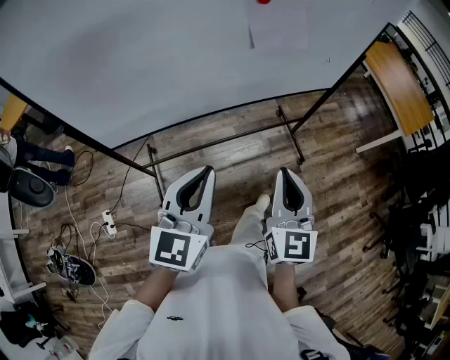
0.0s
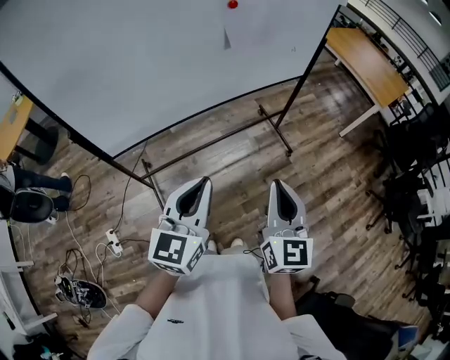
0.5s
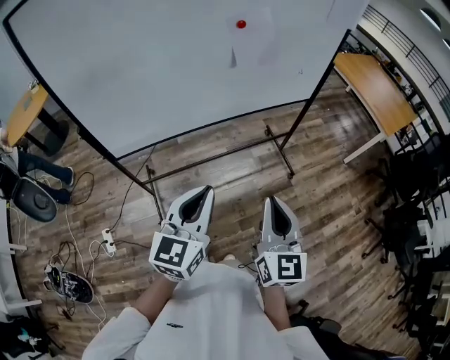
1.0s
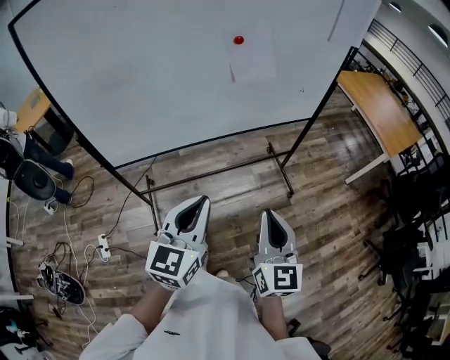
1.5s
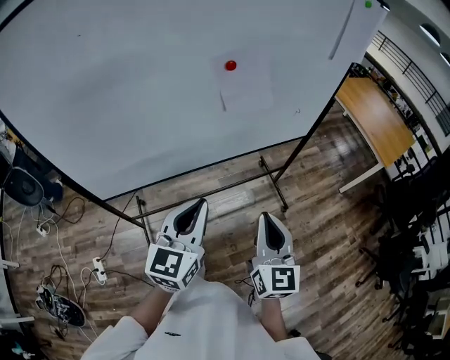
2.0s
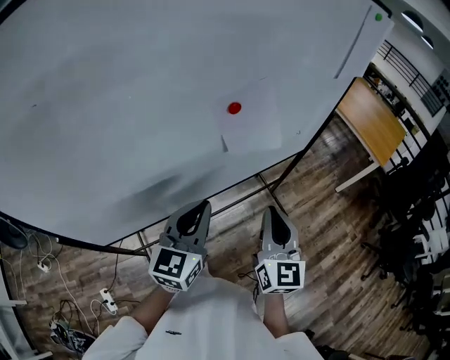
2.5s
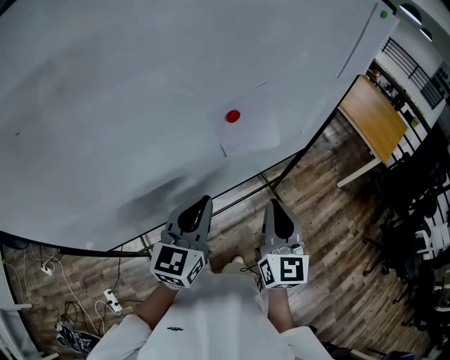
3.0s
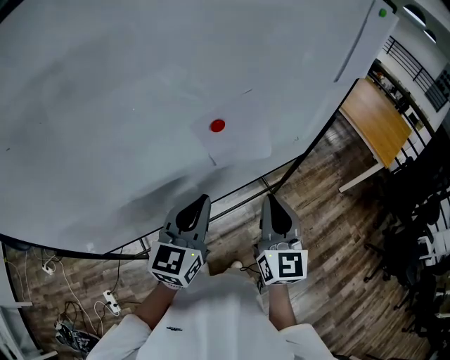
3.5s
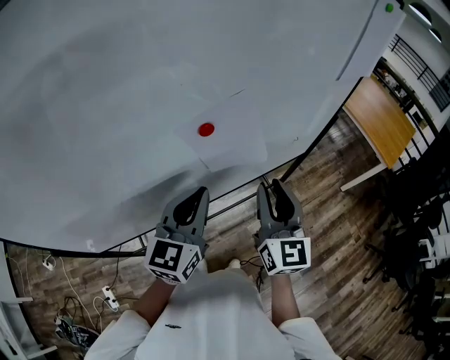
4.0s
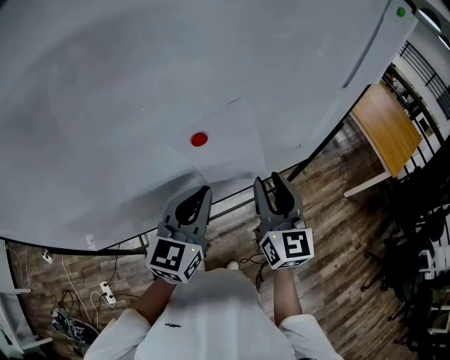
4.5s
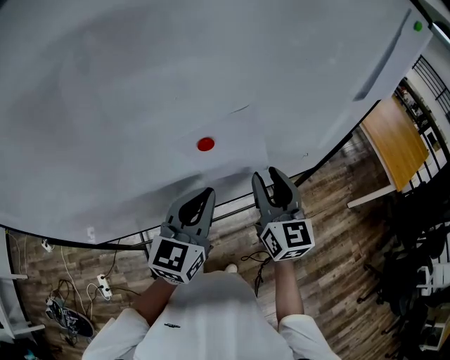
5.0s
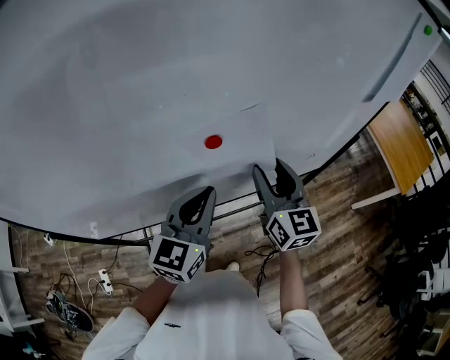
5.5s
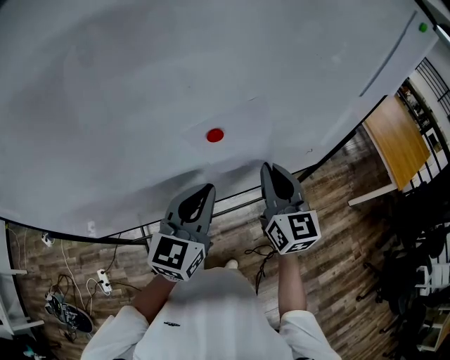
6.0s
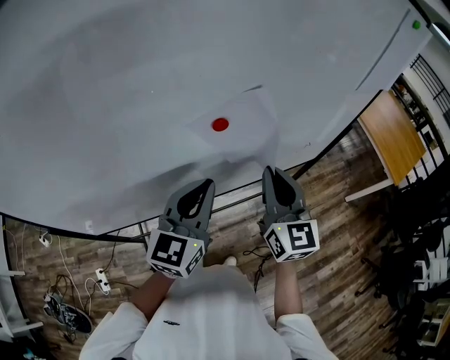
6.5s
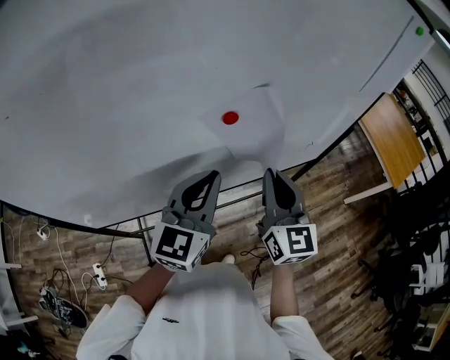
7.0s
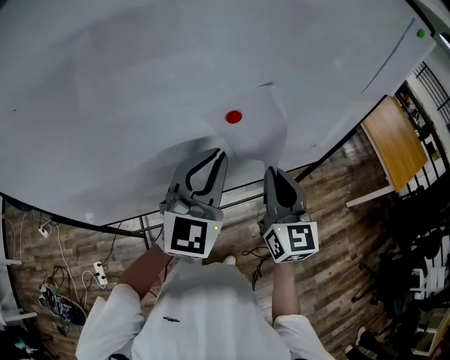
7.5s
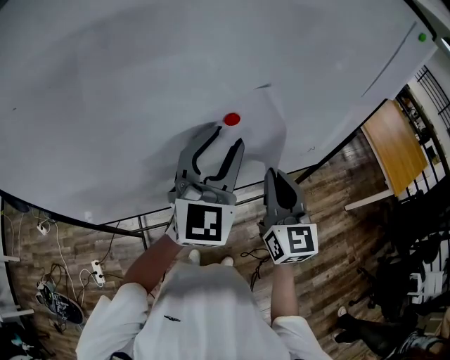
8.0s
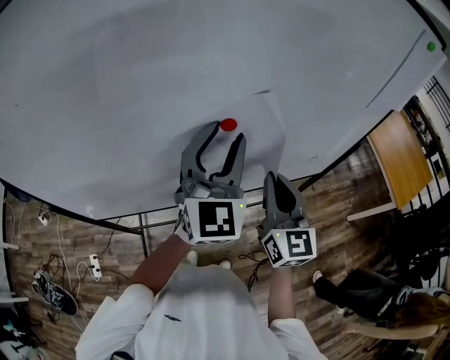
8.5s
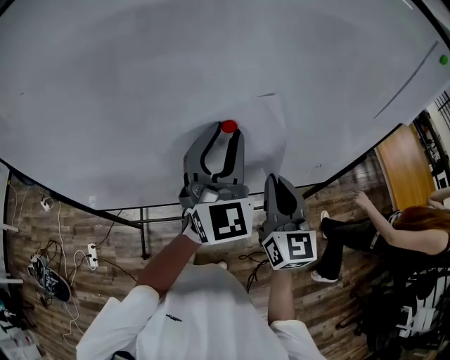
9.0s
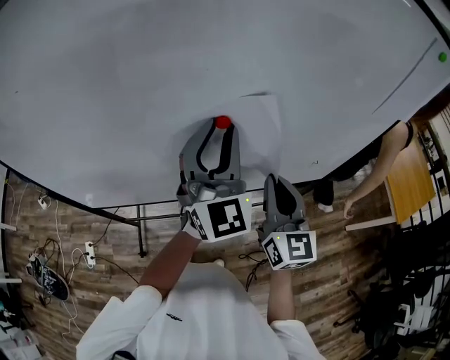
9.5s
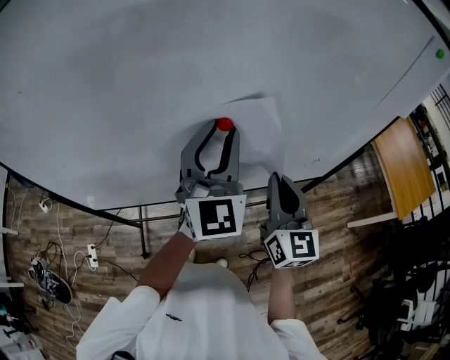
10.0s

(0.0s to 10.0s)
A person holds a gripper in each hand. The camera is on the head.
0.0s - 2.0s: The right gripper goes backward and returns, about 10 cm each way; the left gripper shifts roughly 5 cm forward.
2.0s - 4.0s: The two grippers go some 25 cm forward. The right gripper opens.
4.0s - 6.0s: The right gripper is displaced forward by some 10 cm, and closes.
6.0s - 8.0s: The left gripper moves upward, approximately 10 cm, changes its angle by about 30 degrees, and opens its fingers, while the right gripper is displaced backward by about 5 cm.

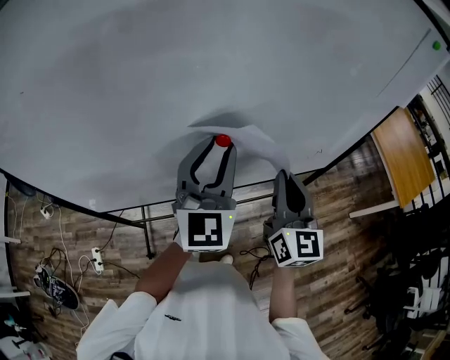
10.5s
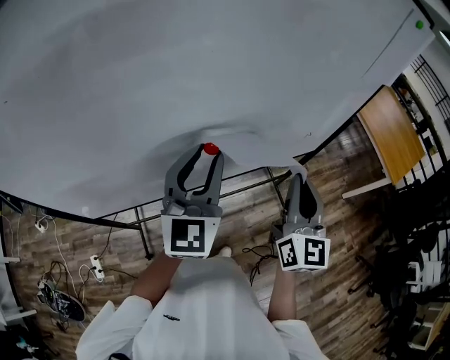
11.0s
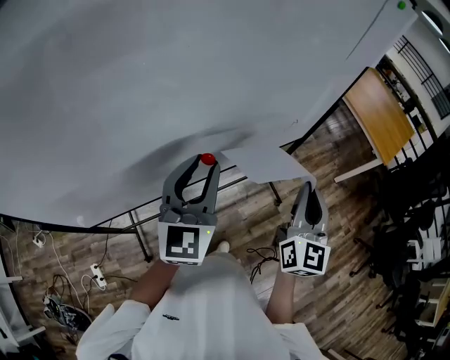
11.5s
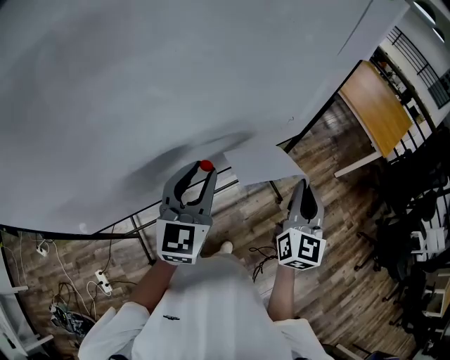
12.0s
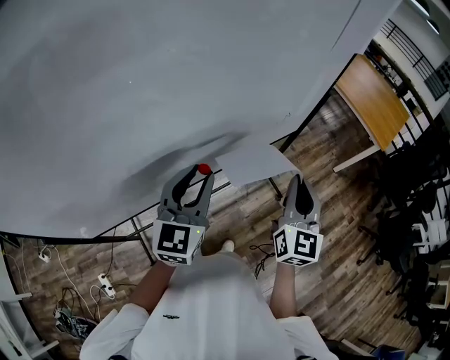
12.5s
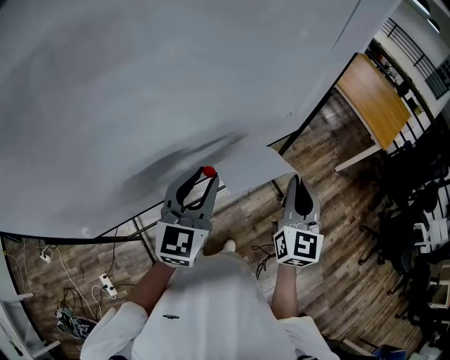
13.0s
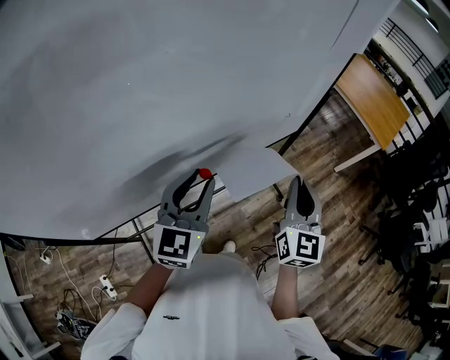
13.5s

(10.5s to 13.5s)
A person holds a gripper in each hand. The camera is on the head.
10.5s - 12.0s: The right gripper is displaced to the right and backward by approximately 15 cm, and swivels about 30 degrees; the left gripper goes about 10 cm downward, and turns by some 20 degrees.
12.0s - 13.5s: The grippers make only small movements.

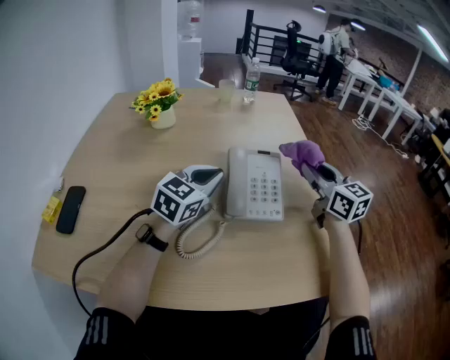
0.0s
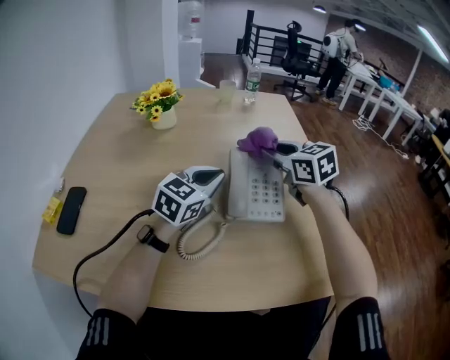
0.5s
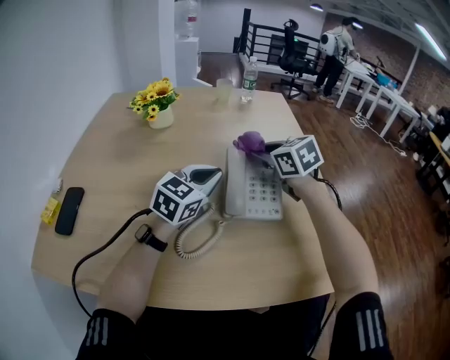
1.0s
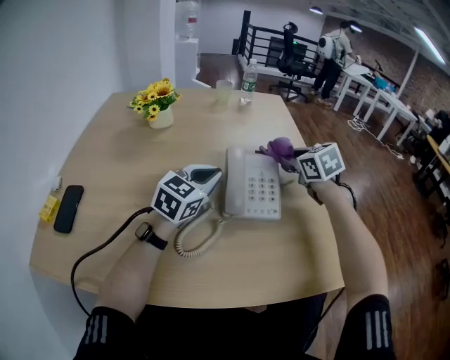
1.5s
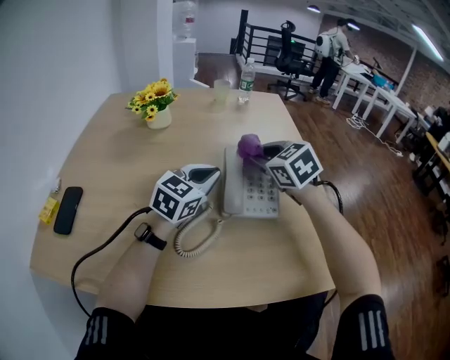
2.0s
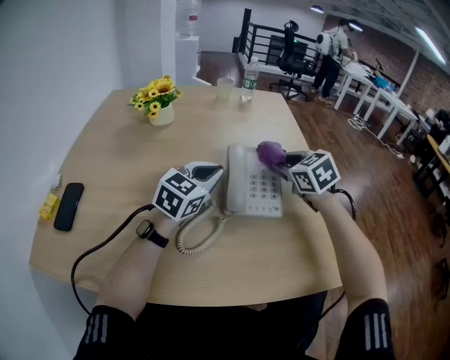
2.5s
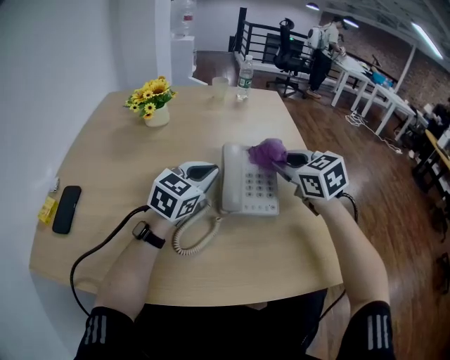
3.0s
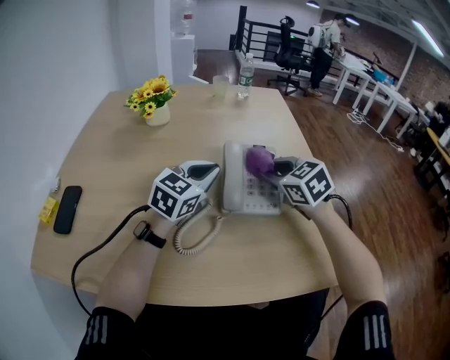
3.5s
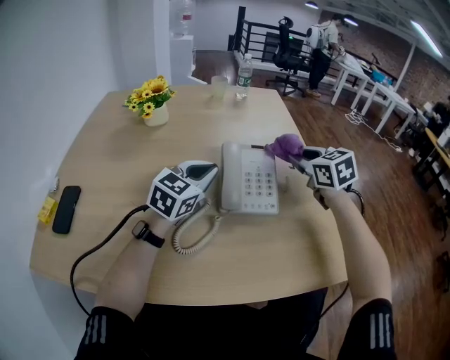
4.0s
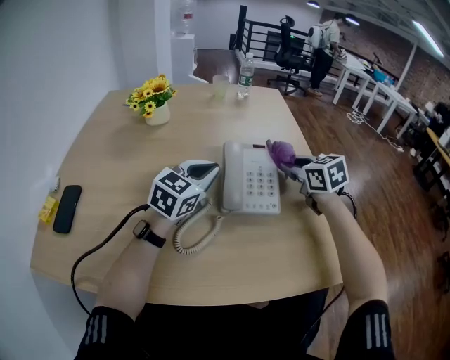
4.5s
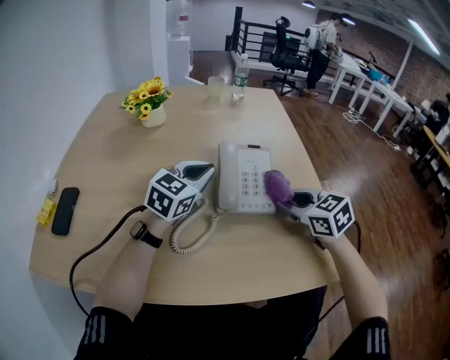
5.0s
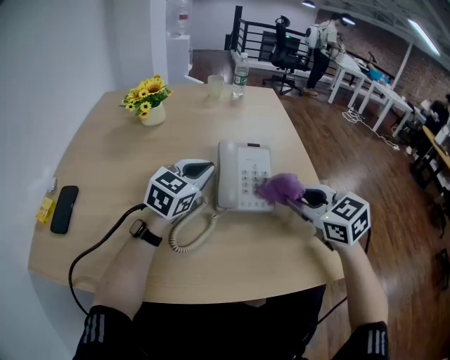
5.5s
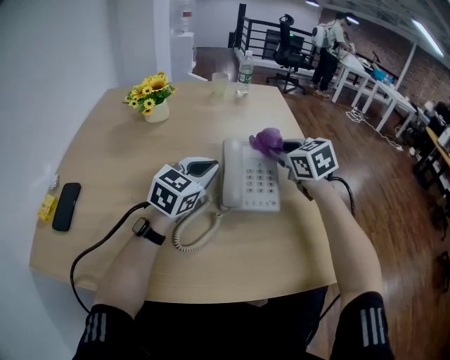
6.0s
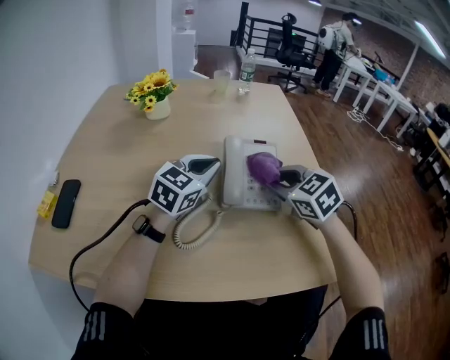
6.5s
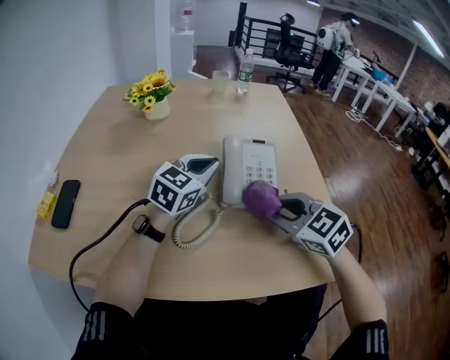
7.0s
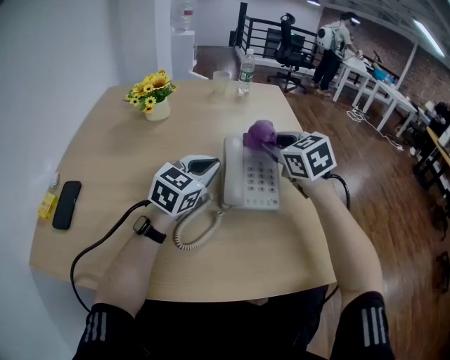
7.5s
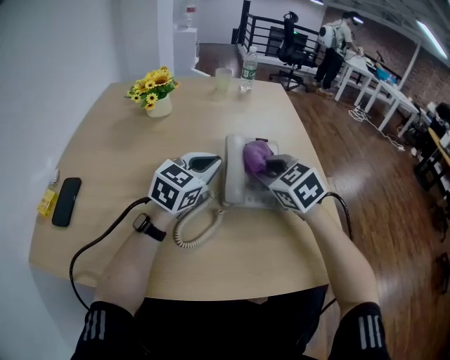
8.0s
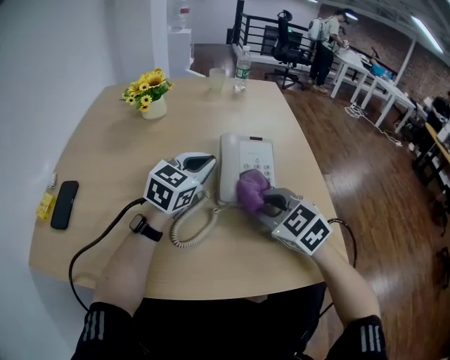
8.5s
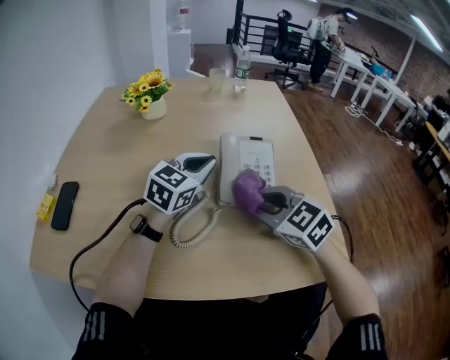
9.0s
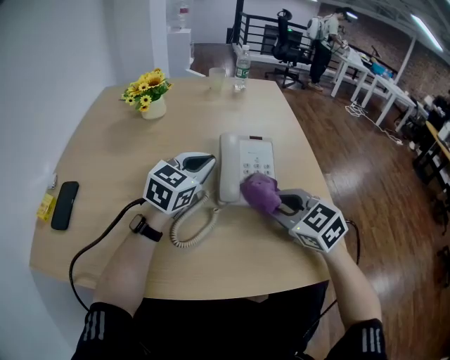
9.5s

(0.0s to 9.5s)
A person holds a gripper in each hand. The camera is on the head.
0.0s - 2.0s: The right gripper moves left and right over roughly 15 cm, changing direction 2 times, and tips its fingers downward by roughly 30 degrees.
2.0s - 4.0s: The right gripper heads to the right, covering about 10 cm.
4.0s - 5.5s: The right gripper moves backward, approximately 15 cm.
5.5s - 7.5s: The right gripper swings forward and backward, some 20 cm each way, with 2 reversals.
7.5s - 9.5s: The right gripper heads backward and downward, covering approximately 15 cm.

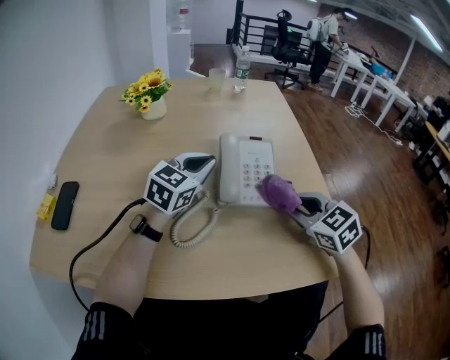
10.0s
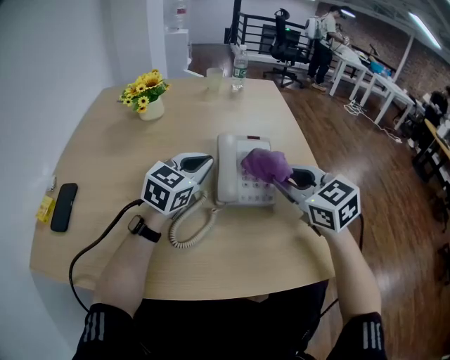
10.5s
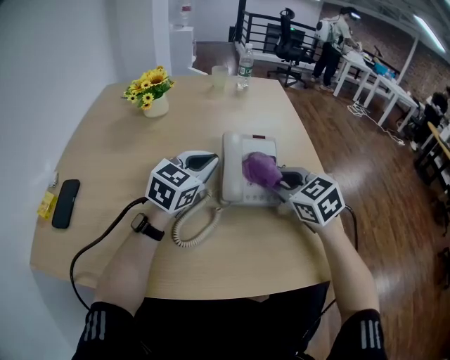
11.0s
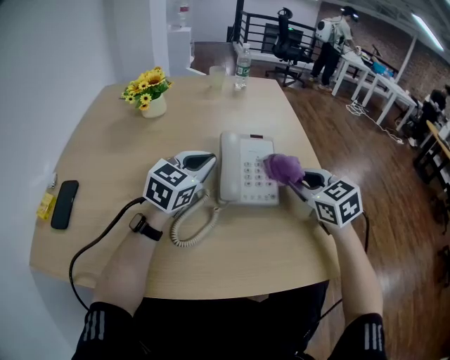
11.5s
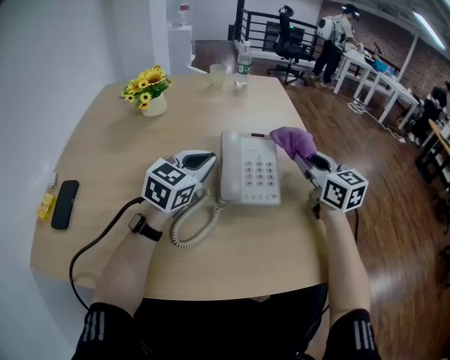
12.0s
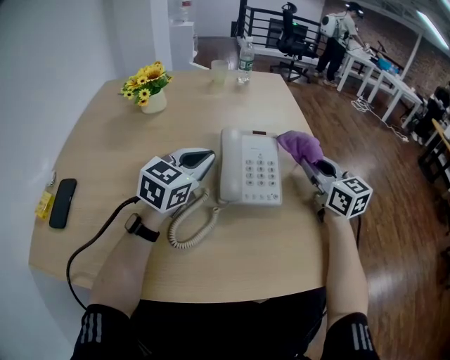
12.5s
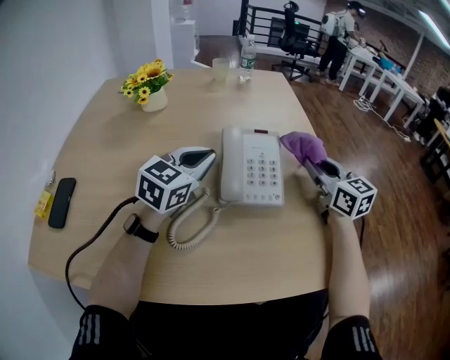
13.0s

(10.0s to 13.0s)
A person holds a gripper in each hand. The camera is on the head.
10.0s - 11.5s: The right gripper is displaced forward by some 5 cm.
11.5s - 13.0s: The right gripper moves forward, approximately 5 cm, and rotates some 30 degrees.

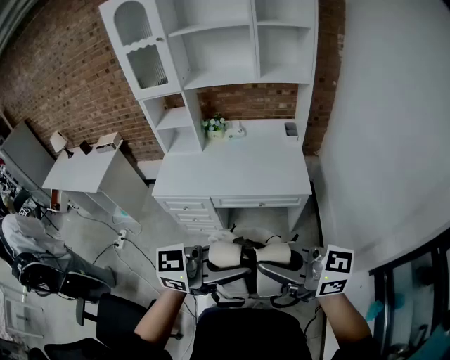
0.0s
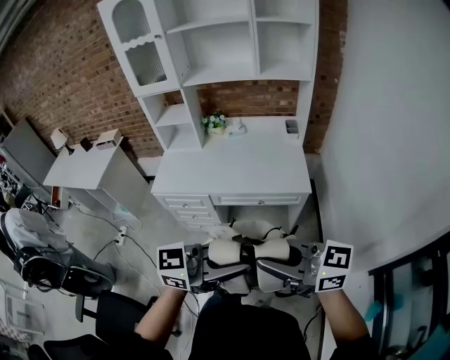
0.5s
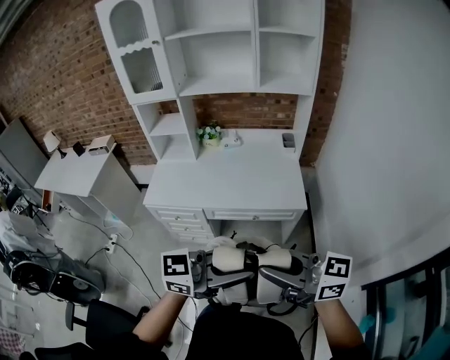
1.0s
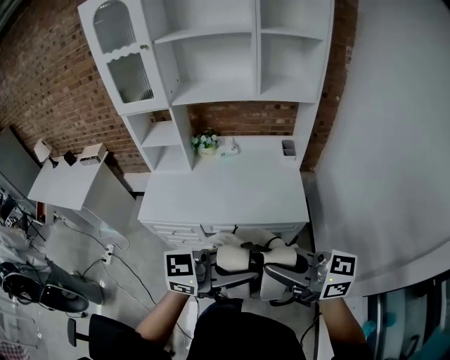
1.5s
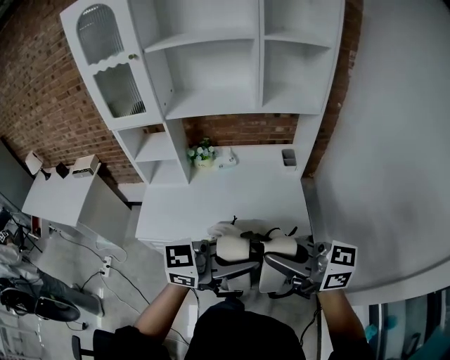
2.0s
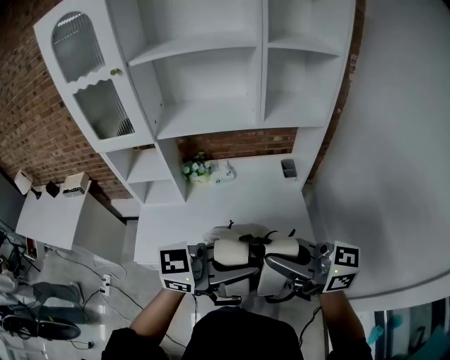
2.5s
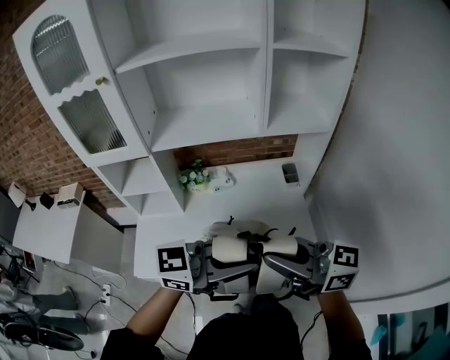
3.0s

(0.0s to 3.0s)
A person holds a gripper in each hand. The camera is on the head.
0.0s - 1.5s: The right gripper ends up about 15 cm from where it was, while the left gripper moves about 15 cm.
1.5s - 3.0s: The right gripper moves about 30 cm. The left gripper ends up some 30 cm from where it was.
